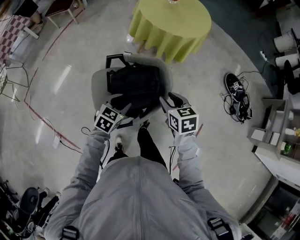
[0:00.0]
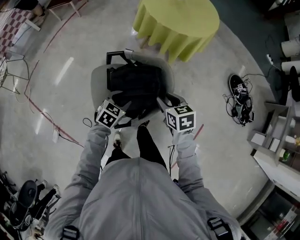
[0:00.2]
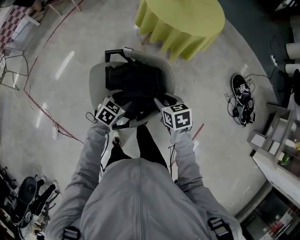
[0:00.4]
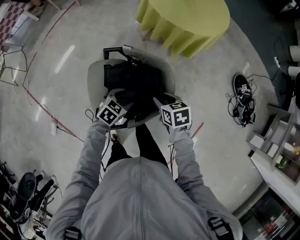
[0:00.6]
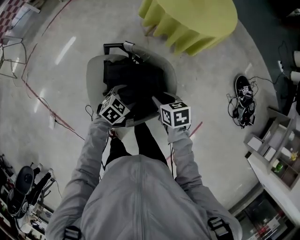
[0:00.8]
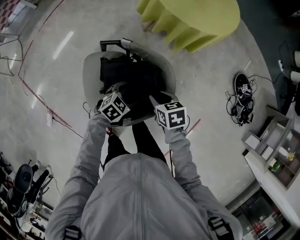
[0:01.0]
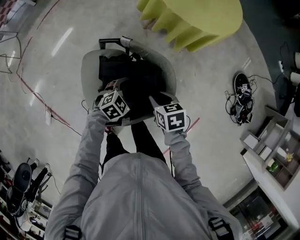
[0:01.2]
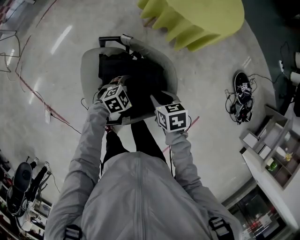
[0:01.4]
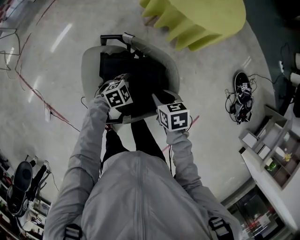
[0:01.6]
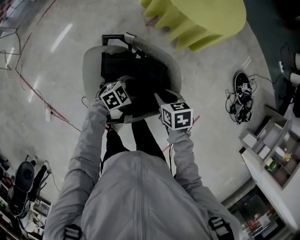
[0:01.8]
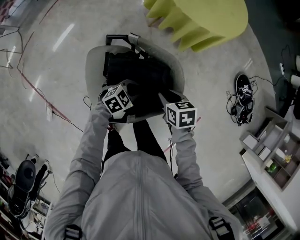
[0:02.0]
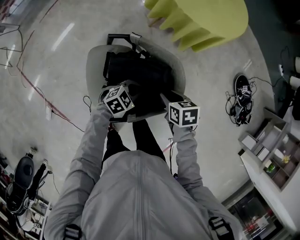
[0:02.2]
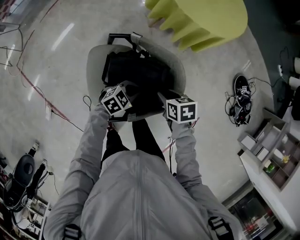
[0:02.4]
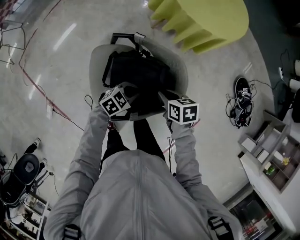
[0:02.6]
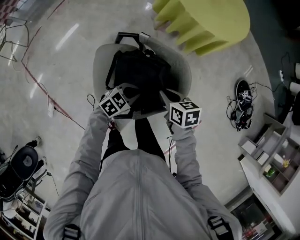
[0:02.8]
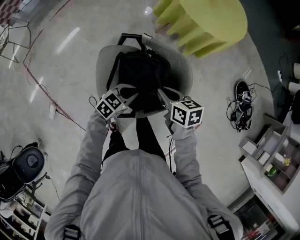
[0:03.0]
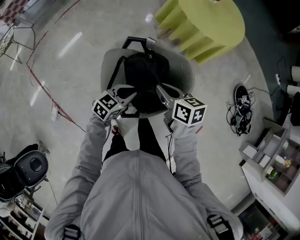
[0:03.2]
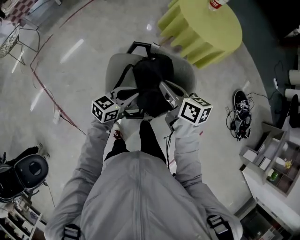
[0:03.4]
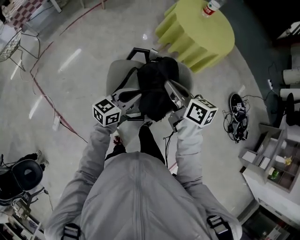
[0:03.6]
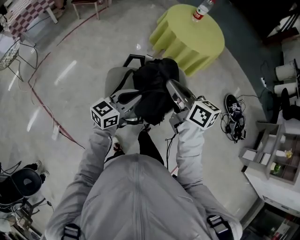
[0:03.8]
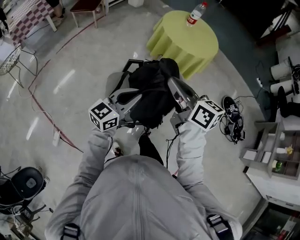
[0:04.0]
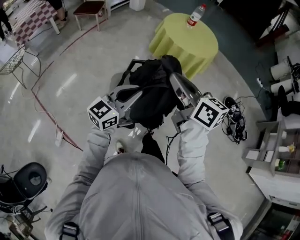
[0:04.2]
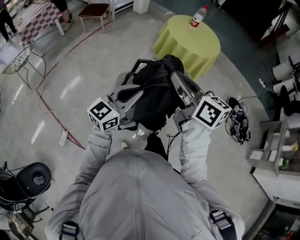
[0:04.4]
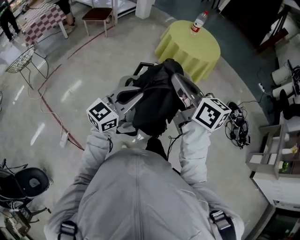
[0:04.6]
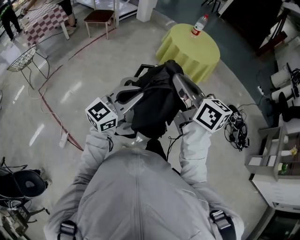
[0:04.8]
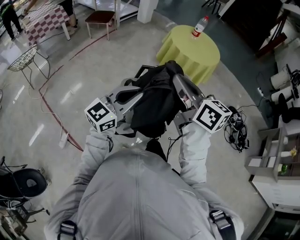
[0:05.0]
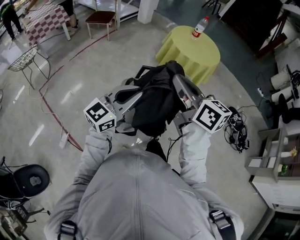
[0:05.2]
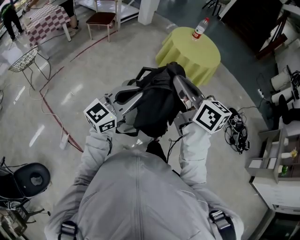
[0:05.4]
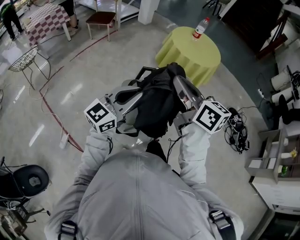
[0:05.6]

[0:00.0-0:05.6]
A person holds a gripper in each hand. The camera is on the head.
0:00.0 to 0:01.4: The two grippers go some 15 cm downward. The right gripper turns by about 20 degrees; the left gripper turns by about 30 degrees, and opens its fingers.
0:01.4 to 0:02.8: The right gripper closes up. The left gripper changes place by roughly 10 cm, and closes.
0:02.8 to 0:04.2: The grippers both shift upward by some 35 cm. The right gripper tilts its fingers roughly 40 degrees upward, while the left gripper angles its fingers upward, by roughly 40 degrees.
0:04.2 to 0:05.6: The left gripper shifts approximately 10 cm backward, upward and to the left, while the right gripper moves backward, roughly 5 cm.

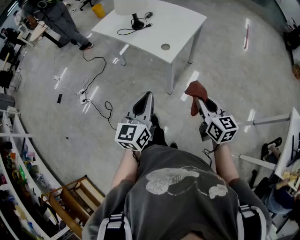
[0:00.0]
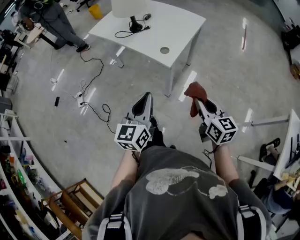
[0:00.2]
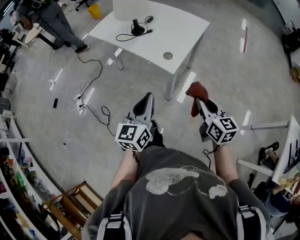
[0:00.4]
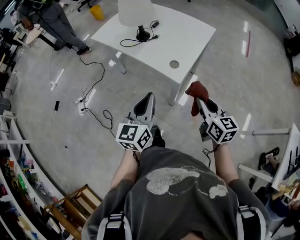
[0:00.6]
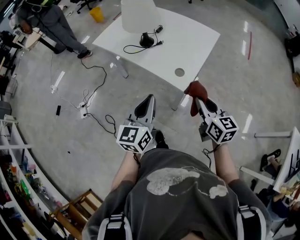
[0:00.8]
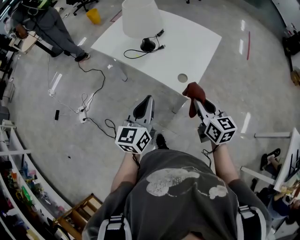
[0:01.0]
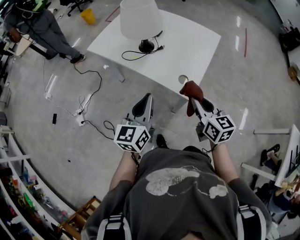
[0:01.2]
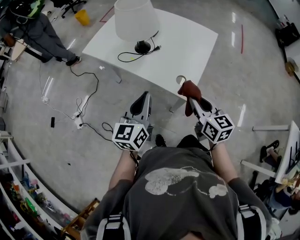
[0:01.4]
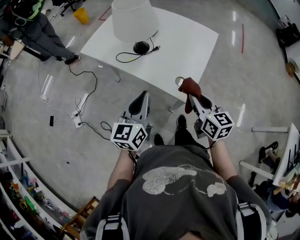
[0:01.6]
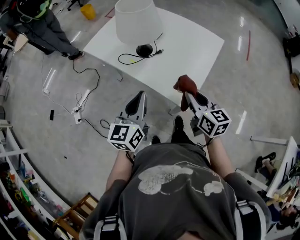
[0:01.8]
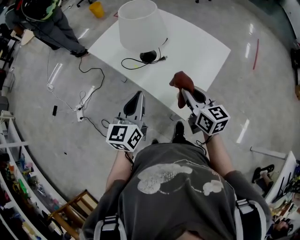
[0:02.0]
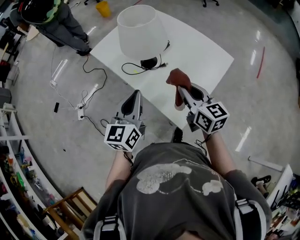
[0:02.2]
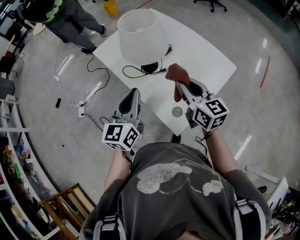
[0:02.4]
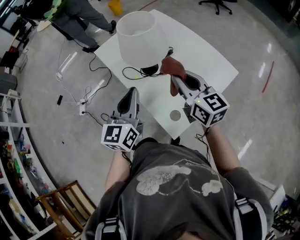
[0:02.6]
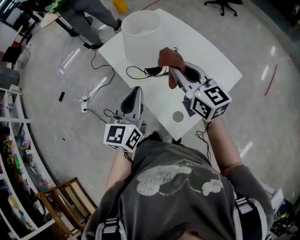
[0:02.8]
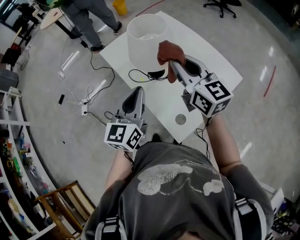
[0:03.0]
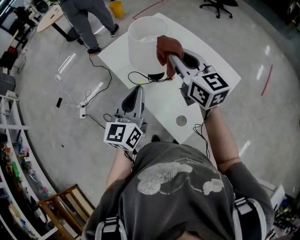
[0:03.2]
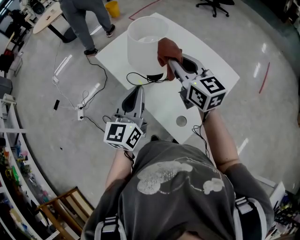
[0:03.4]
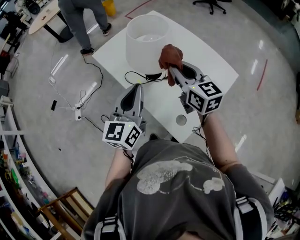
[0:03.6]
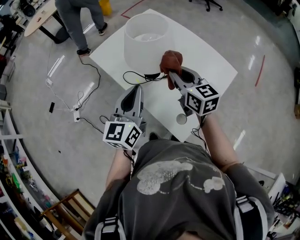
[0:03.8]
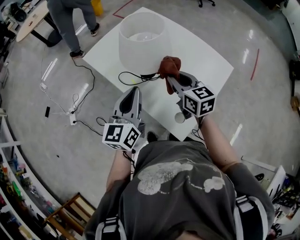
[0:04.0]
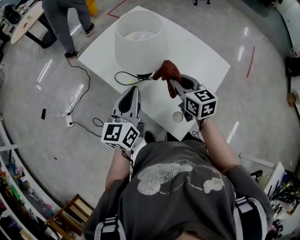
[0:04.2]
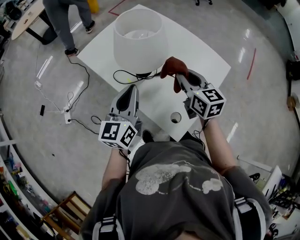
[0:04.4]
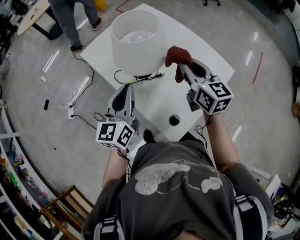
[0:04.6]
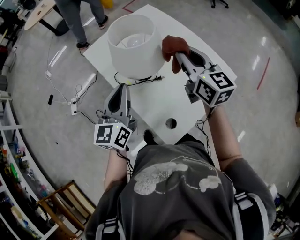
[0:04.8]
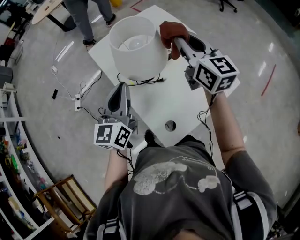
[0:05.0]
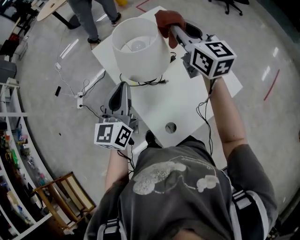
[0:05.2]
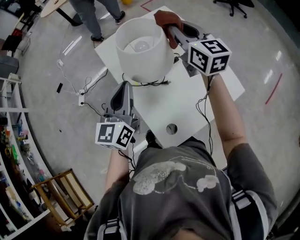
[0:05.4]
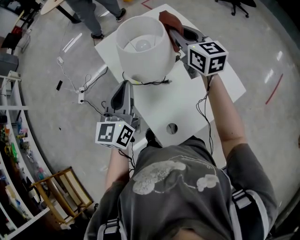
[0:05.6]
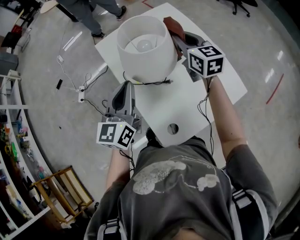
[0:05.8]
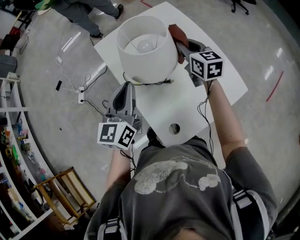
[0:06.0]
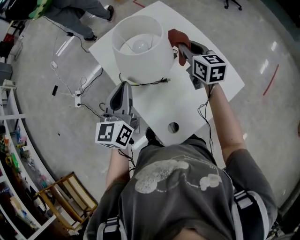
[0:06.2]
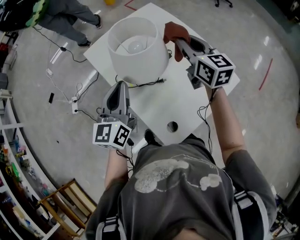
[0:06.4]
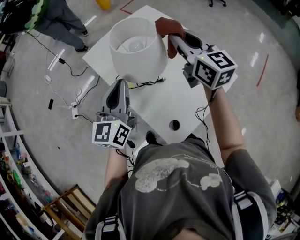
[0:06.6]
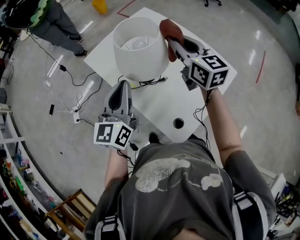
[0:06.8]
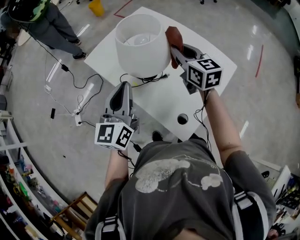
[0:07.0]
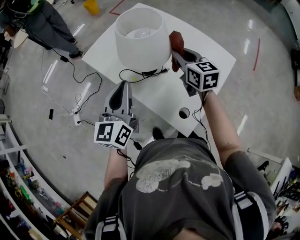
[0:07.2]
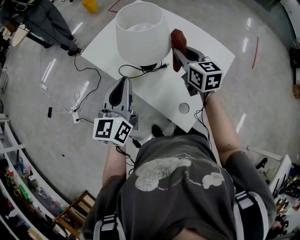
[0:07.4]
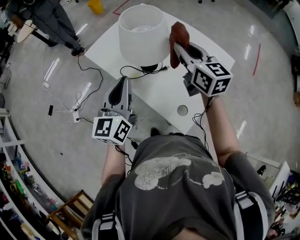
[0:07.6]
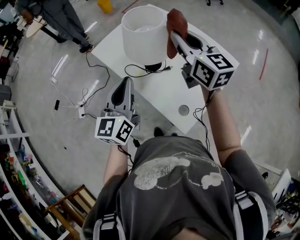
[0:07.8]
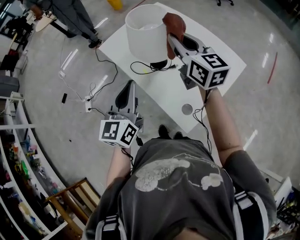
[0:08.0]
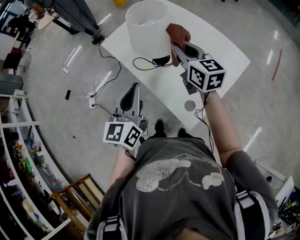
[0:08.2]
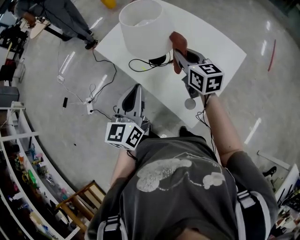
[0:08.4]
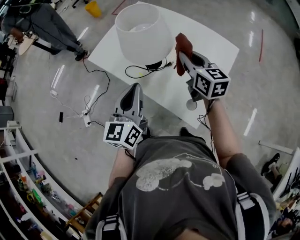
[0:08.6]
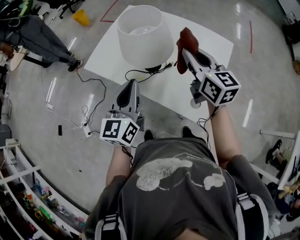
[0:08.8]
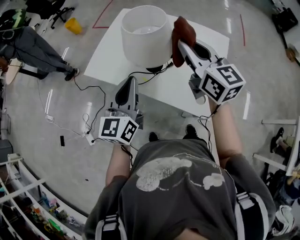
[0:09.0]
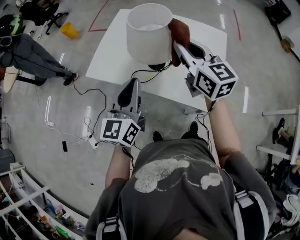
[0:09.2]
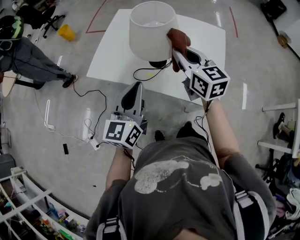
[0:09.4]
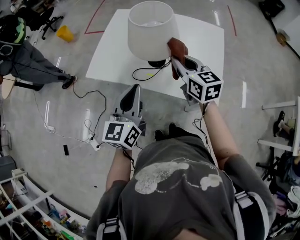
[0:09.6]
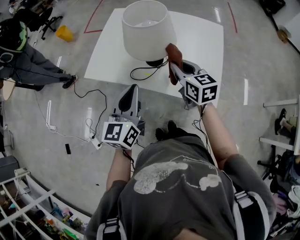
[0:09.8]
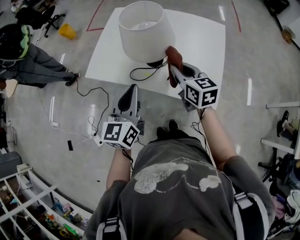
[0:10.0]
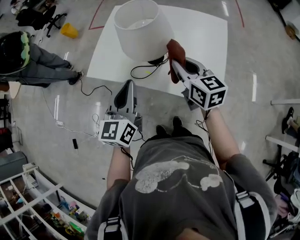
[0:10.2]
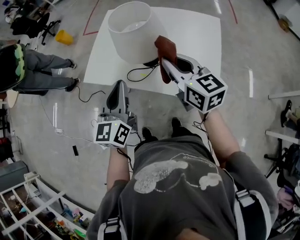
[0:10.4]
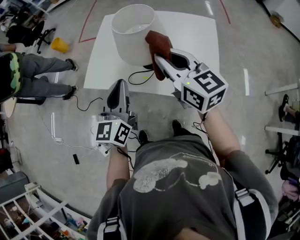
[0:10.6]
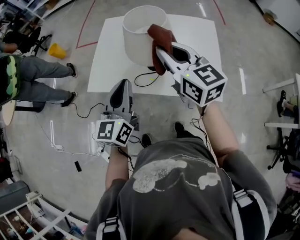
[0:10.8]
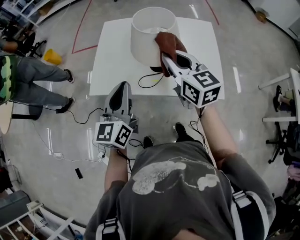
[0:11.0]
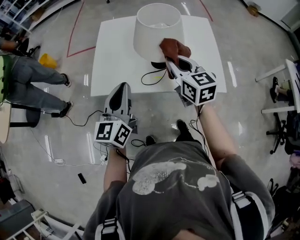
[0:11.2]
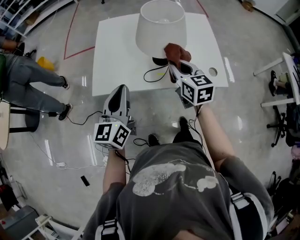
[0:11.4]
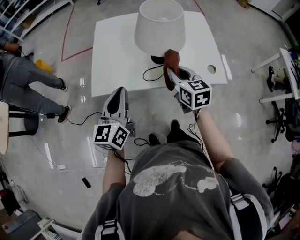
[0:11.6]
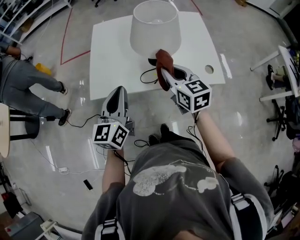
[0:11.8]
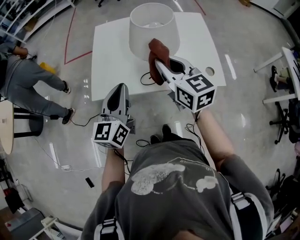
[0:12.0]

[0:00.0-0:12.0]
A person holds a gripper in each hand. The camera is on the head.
0:00.0 to 0:01.6: The right gripper travels forward and to the left by some 30 cm. Meanwhile the left gripper heads forward, covering about 25 cm.
0:01.6 to 0:03.0: The left gripper shifts by roughly 15 cm, and turns by approximately 20 degrees, while the right gripper moves about 30 cm, and changes its angle by about 30 degrees.
0:03.0 to 0:04.4: The left gripper shifts by some 5 cm. Meanwhile the right gripper travels downward and to the right by some 15 cm, and swivels approximately 20 degrees.
0:04.4 to 0:06.0: The right gripper goes about 20 cm forward.
0:06.0 to 0:07.6: The right gripper goes some 15 cm backward and upward.
0:07.6 to 0:09.0: The left gripper shifts by roughly 5 cm. Meanwhile the right gripper moves up and down over roughly 15 cm, changing direction 2 times.
0:09.0 to 0:10.4: The right gripper travels downward by roughly 5 cm.
0:10.4 to 0:12.0: The left gripper shifts some 10 cm to the left, and turns by approximately 20 degrees. The right gripper swings up and down, about 15 cm each way, with 2 reversals.

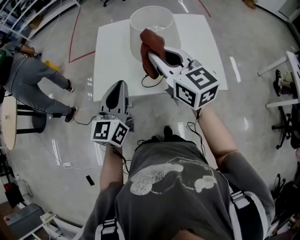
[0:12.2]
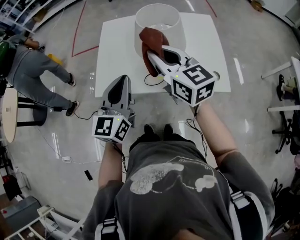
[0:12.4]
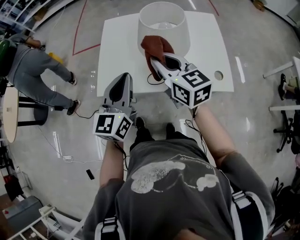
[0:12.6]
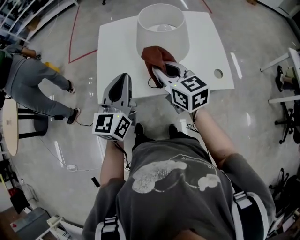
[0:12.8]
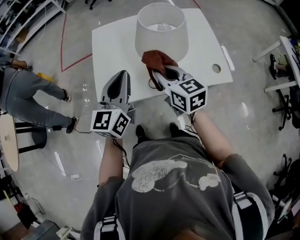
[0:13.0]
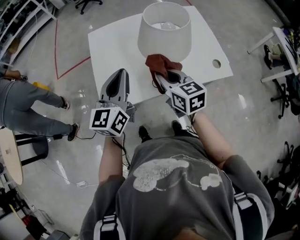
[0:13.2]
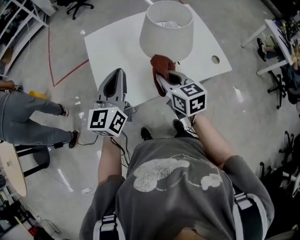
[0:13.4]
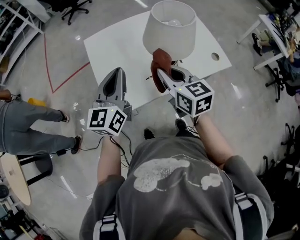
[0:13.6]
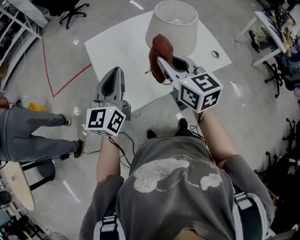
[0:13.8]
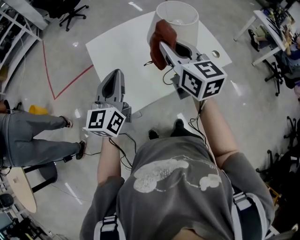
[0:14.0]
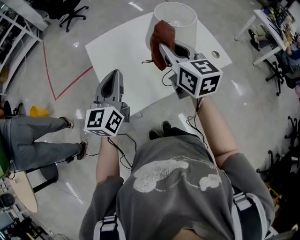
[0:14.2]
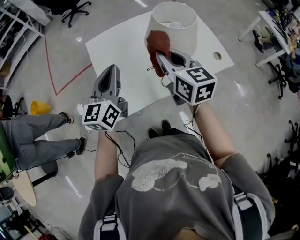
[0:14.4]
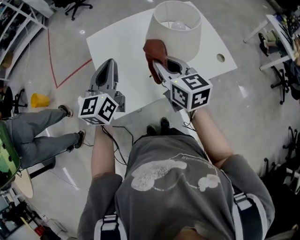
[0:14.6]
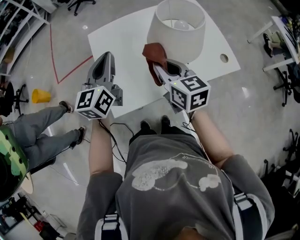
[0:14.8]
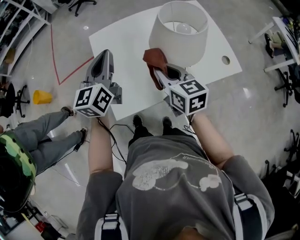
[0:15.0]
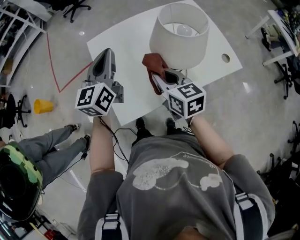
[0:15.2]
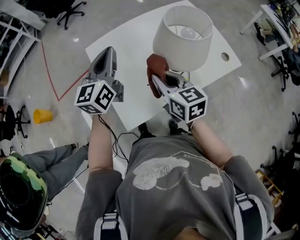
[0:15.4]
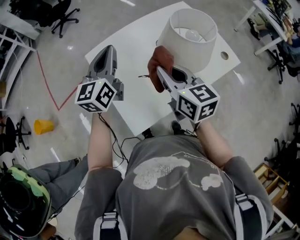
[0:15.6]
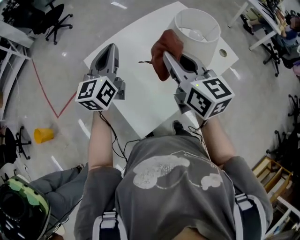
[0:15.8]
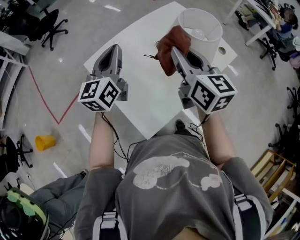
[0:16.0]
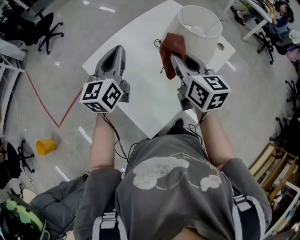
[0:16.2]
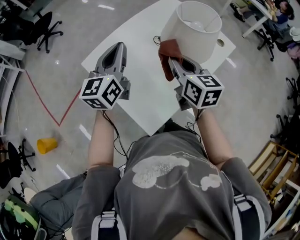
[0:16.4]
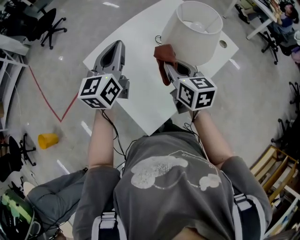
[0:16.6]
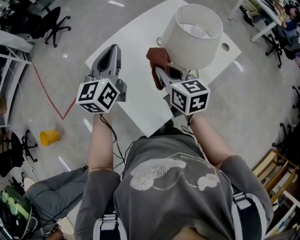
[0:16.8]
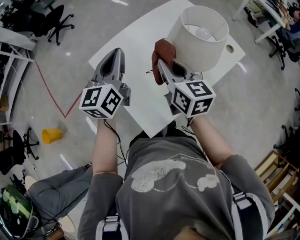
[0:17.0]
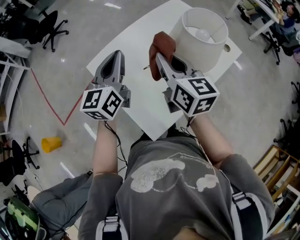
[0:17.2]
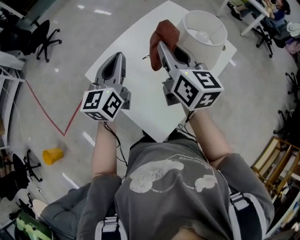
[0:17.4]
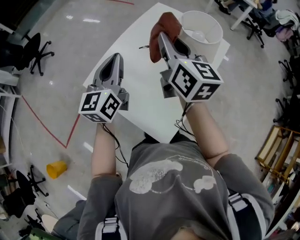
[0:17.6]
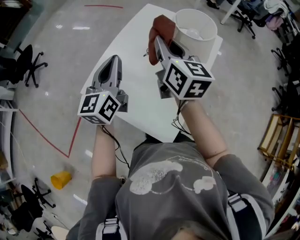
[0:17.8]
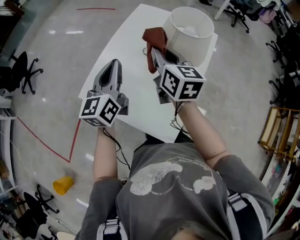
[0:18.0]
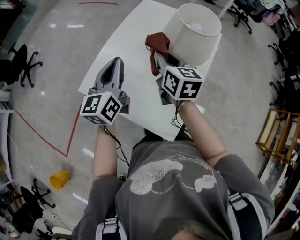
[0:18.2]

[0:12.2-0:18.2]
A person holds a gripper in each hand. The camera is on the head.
0:12.2 to 0:13.8: The left gripper shifts by some 20 cm, and swivels roughly 20 degrees. Meanwhile the right gripper reaches approximately 15 cm downward, then returns, and turns by some 30 degrees.
0:13.8 to 0:15.2: The left gripper heads forward, covering about 15 cm. The right gripper shifts some 10 cm downward and forward.
0:15.2 to 0:16.6: The left gripper ends up approximately 5 cm from where it was, and rotates roughly 20 degrees, while the right gripper goes upward and returns, about 10 cm each way, and swivels some 30 degrees.
0:16.6 to 0:18.2: The left gripper changes place by roughly 5 cm. Meanwhile the right gripper reaches roughly 15 cm upward, then returns, and turns by roughly 30 degrees.
